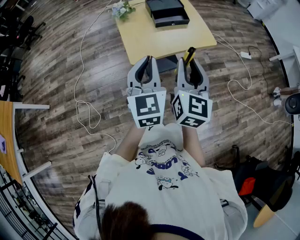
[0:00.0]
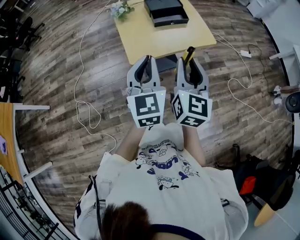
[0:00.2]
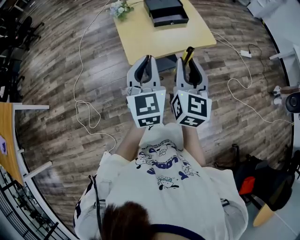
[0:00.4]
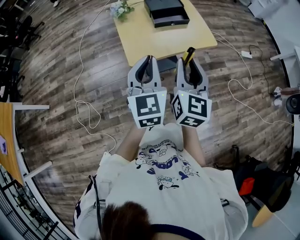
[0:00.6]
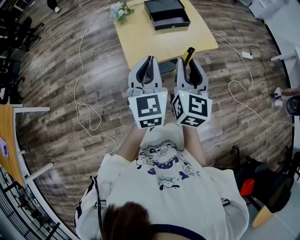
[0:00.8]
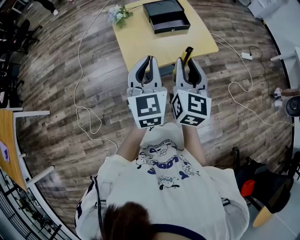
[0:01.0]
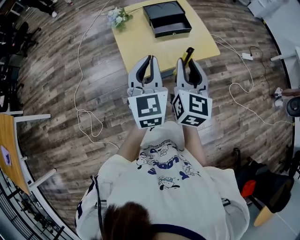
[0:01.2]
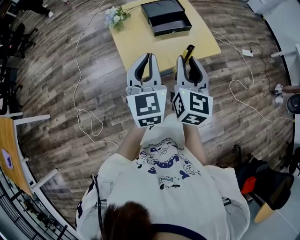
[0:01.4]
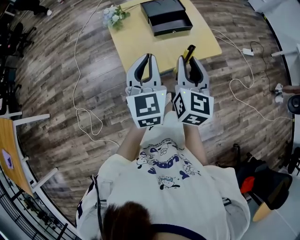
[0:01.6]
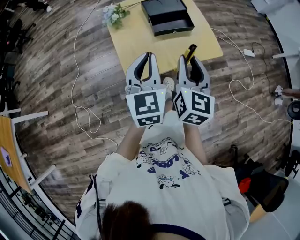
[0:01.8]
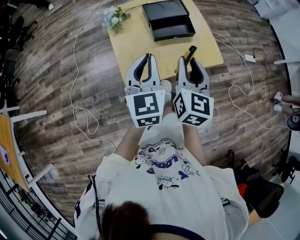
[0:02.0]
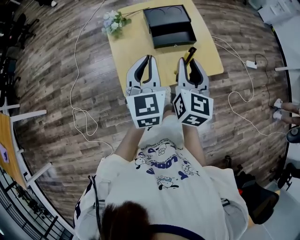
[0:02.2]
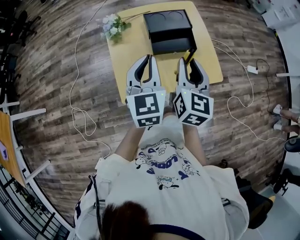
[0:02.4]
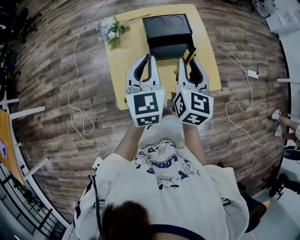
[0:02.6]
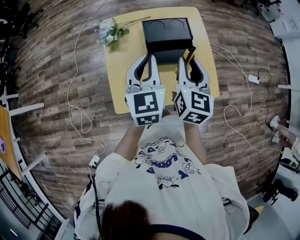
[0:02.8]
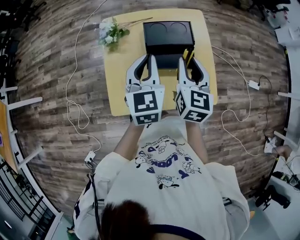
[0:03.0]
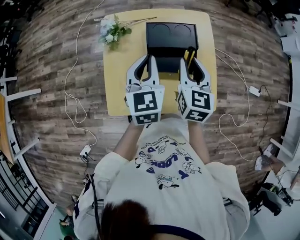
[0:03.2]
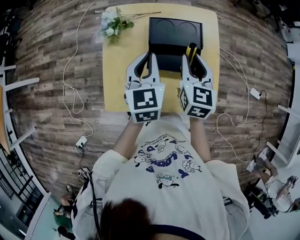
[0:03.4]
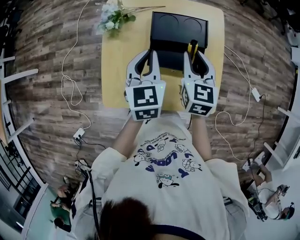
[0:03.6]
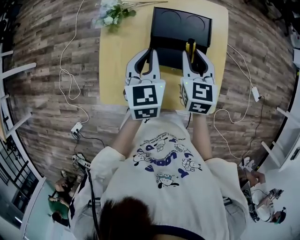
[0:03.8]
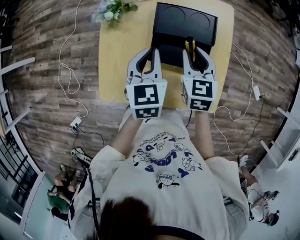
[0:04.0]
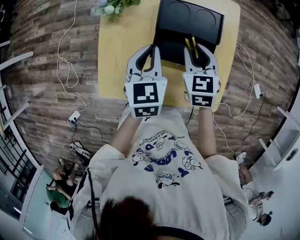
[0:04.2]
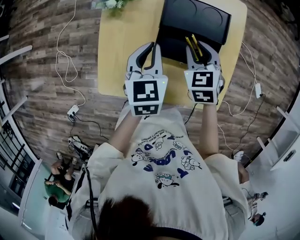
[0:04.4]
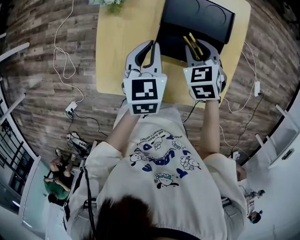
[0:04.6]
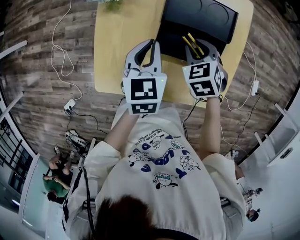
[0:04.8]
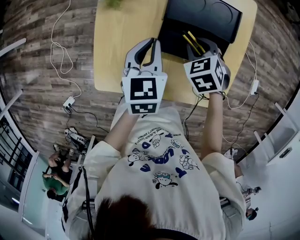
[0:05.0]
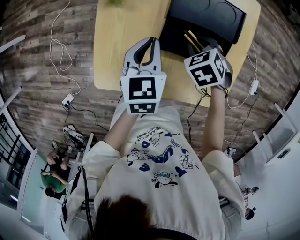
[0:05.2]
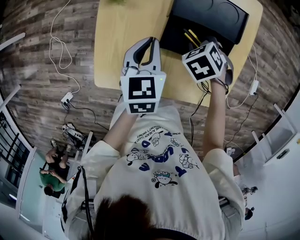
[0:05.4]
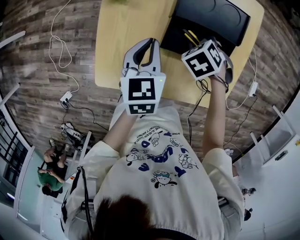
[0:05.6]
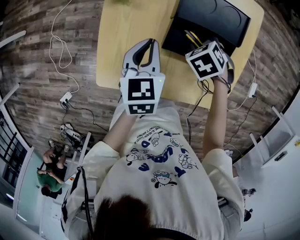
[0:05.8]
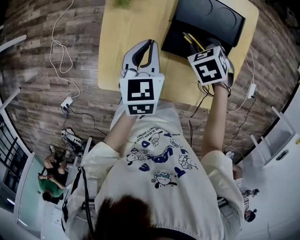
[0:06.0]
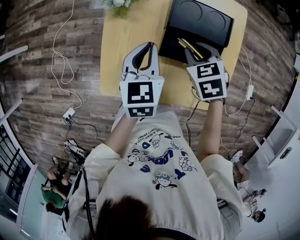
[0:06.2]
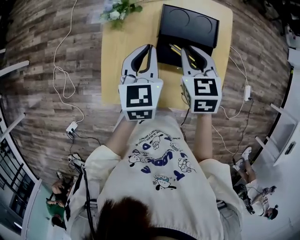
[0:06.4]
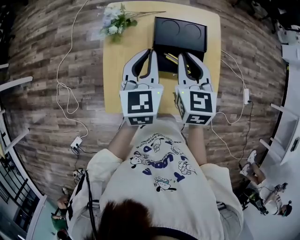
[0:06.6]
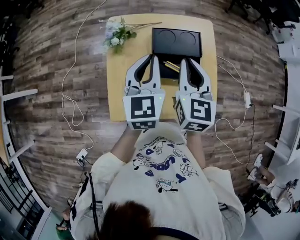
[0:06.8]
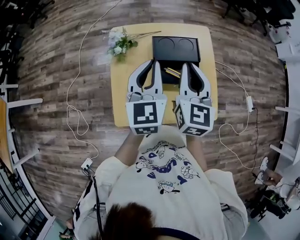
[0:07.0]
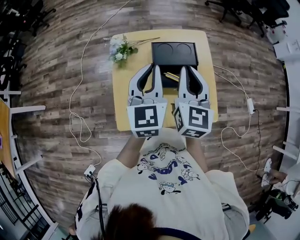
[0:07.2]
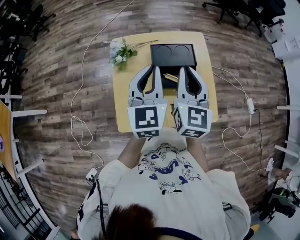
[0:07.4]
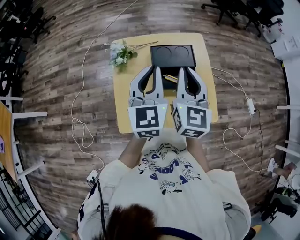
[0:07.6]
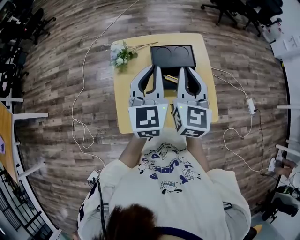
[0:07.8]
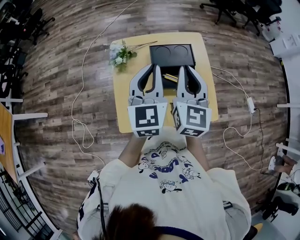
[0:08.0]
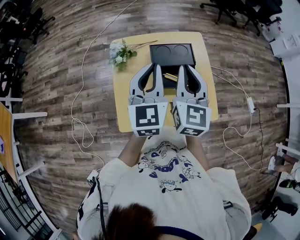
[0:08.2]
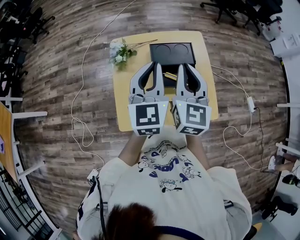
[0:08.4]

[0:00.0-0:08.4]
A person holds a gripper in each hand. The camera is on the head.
0:00.0 to 0:01.4: The two grippers go roughly 10 cm forward.
0:01.4 to 0:02.8: Both grippers move forward, about 25 cm.
0:02.8 to 0:04.2: Both grippers travel together downward and forward, roughly 15 cm. The left gripper swivels some 20 degrees. Meanwhile the right gripper turns by approximately 40 degrees.
0:04.2 to 0:05.6: The left gripper shifts some 5 cm downward. The right gripper moves downward, roughly 10 cm, and tips its fingers downward by roughly 40 degrees.
0:05.6 to 0:07.0: The two grippers go about 25 cm upward. The right gripper tilts its fingers about 70 degrees upward; the left gripper changes its angle by about 30 degrees.
0:07.0 to 0:08.4: The grippers make only small movements.

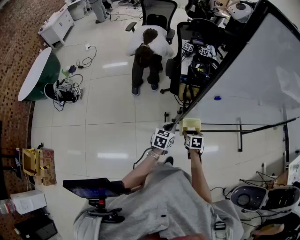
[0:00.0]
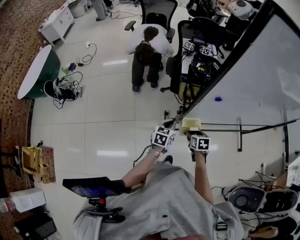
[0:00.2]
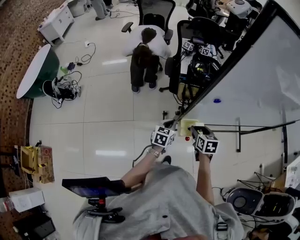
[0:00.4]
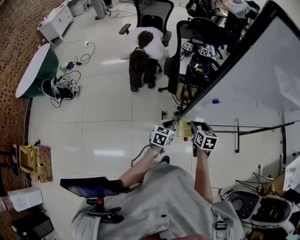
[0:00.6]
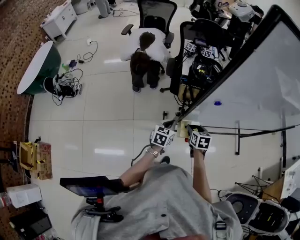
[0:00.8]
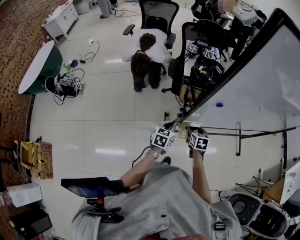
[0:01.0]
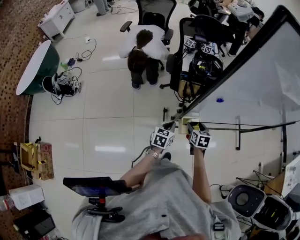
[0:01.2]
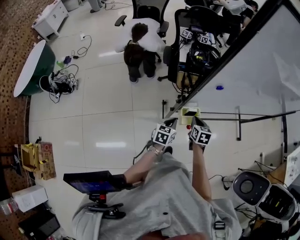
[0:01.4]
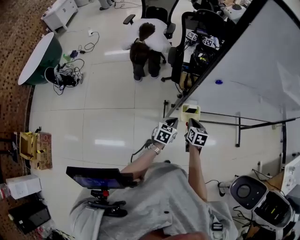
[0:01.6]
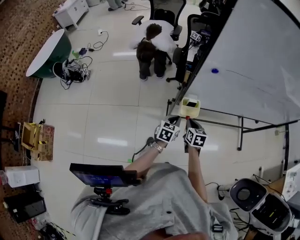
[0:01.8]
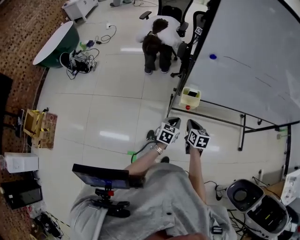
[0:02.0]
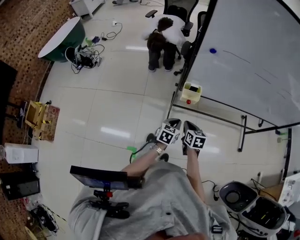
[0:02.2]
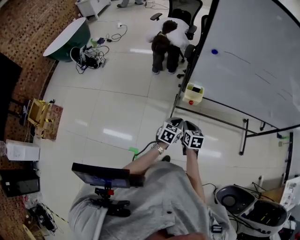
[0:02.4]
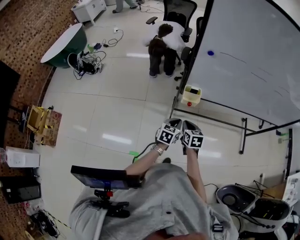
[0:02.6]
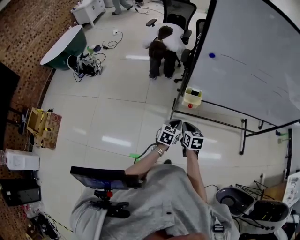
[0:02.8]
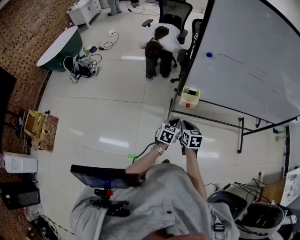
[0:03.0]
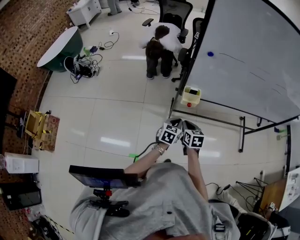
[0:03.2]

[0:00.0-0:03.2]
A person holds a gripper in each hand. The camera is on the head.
0:00.0 to 0:01.6: The left gripper goes some 5 cm backward; the right gripper travels upward by approximately 10 cm, and closes.
0:01.6 to 0:03.2: The grippers both shift backward by roughly 15 cm.

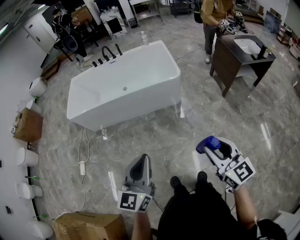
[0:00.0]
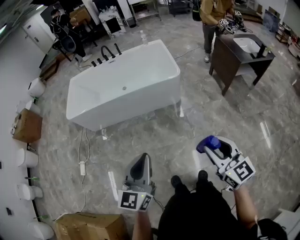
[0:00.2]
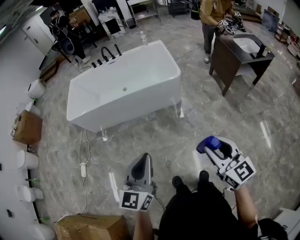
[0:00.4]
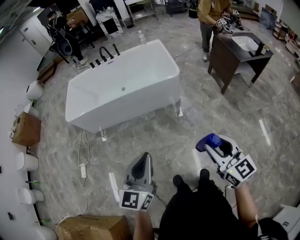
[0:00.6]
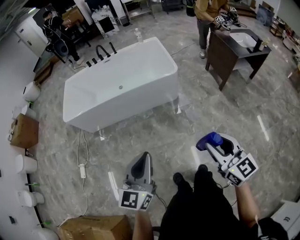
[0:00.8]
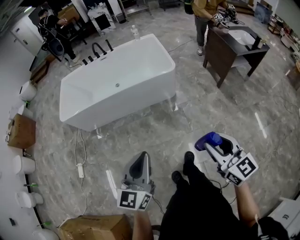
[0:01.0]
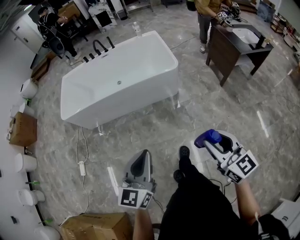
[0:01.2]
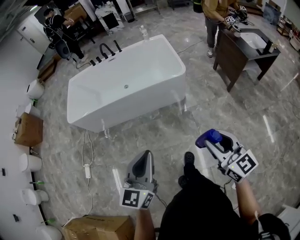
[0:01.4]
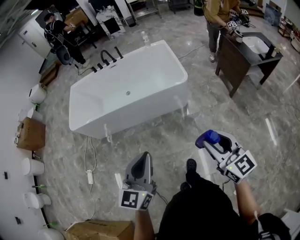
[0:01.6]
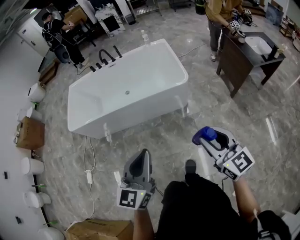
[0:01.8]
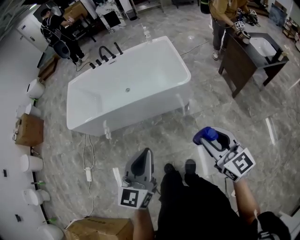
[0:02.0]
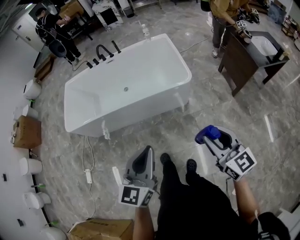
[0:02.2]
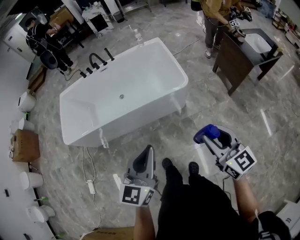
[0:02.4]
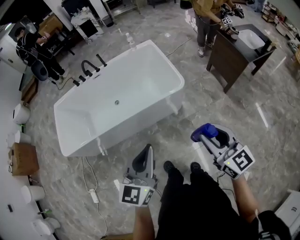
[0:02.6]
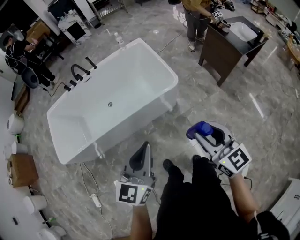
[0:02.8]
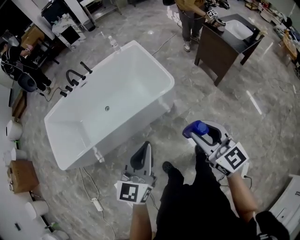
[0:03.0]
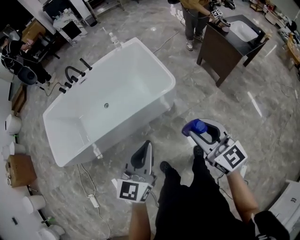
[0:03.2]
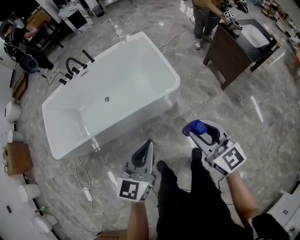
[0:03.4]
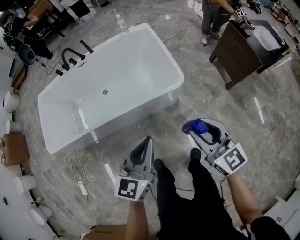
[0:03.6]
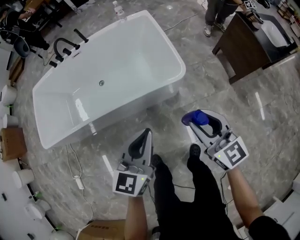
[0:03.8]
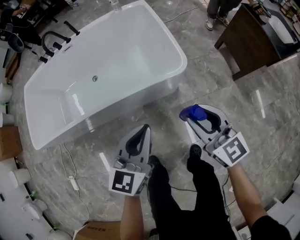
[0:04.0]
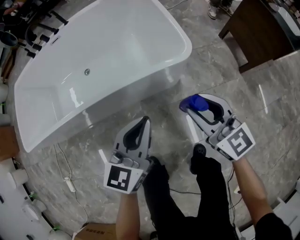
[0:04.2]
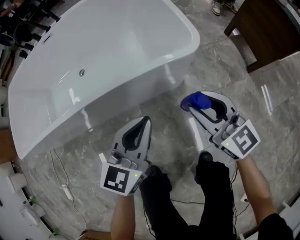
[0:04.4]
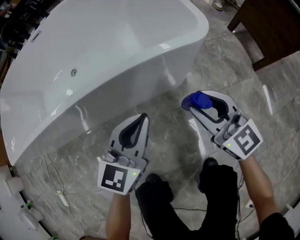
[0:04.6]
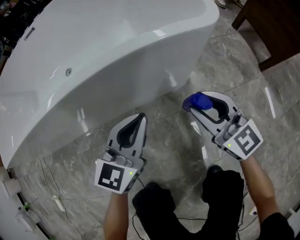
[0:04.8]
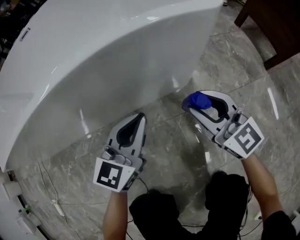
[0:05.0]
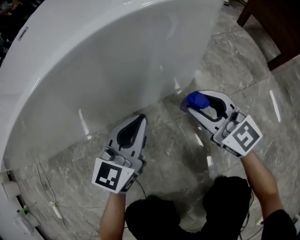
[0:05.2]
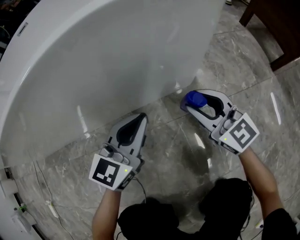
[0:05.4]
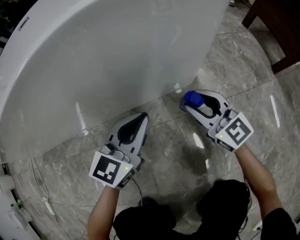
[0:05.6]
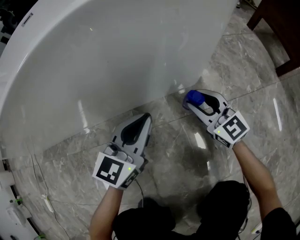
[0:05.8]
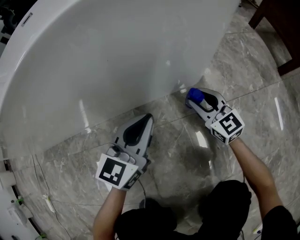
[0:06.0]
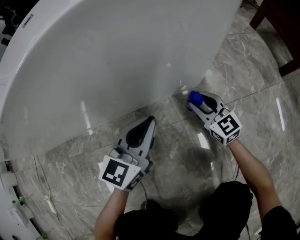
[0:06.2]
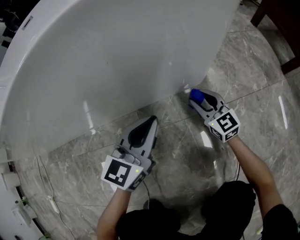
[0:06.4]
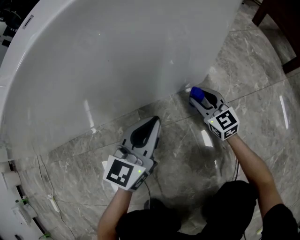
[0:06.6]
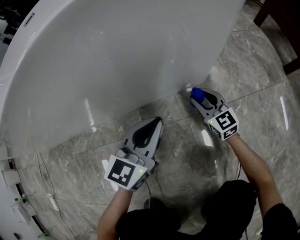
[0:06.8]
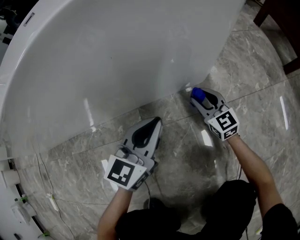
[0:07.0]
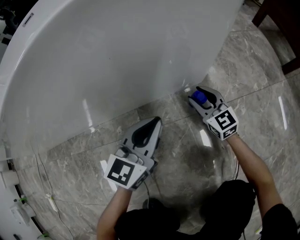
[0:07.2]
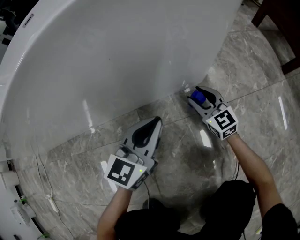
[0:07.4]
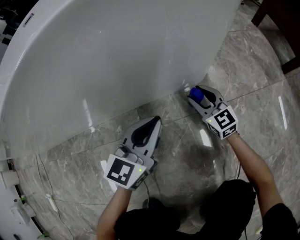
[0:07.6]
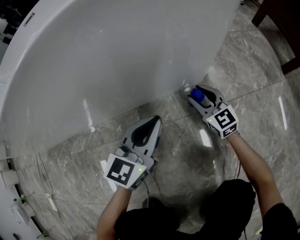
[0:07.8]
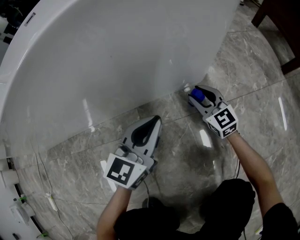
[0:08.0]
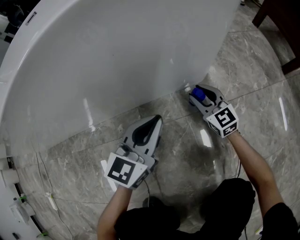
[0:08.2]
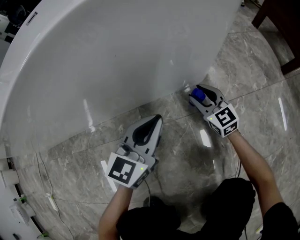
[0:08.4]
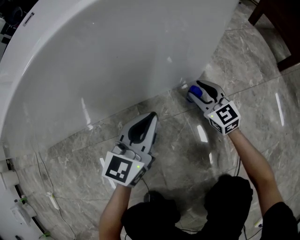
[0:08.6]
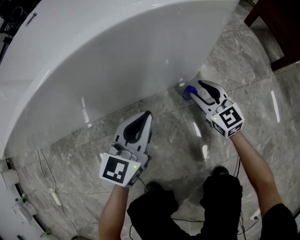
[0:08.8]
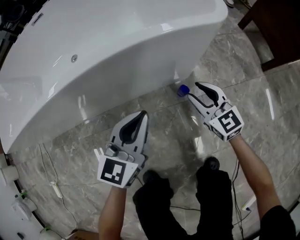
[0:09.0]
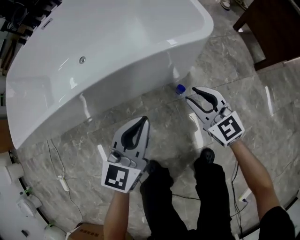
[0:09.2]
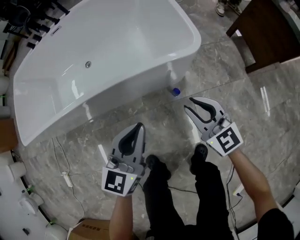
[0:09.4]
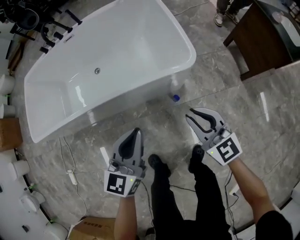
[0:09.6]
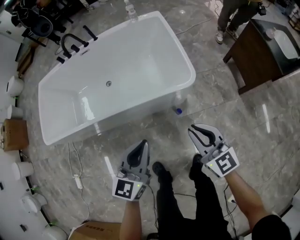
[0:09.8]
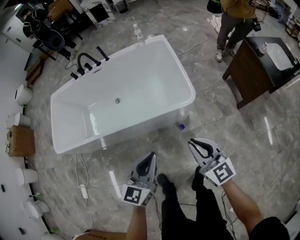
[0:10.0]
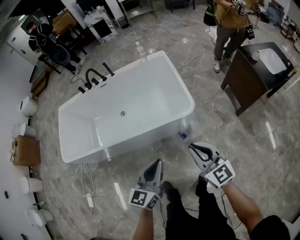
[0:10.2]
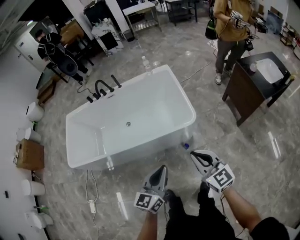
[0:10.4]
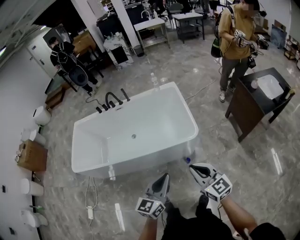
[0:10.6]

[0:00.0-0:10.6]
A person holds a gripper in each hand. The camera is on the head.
0:00.0 to 0:01.6: The grippers both shift forward by roughly 15 cm.
0:01.6 to 0:03.0: Both grippers move forward, about 25 cm.
0:03.0 to 0:04.6: Both grippers move downward and forward, roughly 60 cm.
0:04.6 to 0:06.0: Both grippers travel together downward, some 30 cm.
0:06.0 to 0:07.6: The grippers move only a little.
0:07.6 to 0:09.0: The grippers both shift upward by approximately 20 cm.
0:09.0 to 0:10.6: The two grippers go about 70 cm upward. The right gripper closes its fingers.

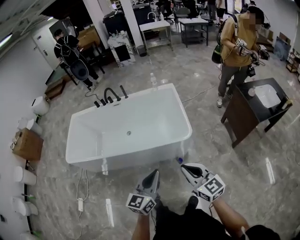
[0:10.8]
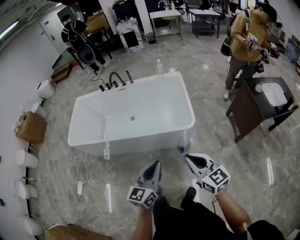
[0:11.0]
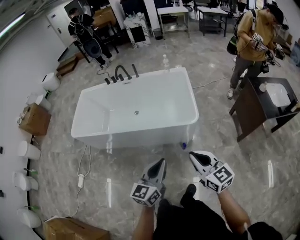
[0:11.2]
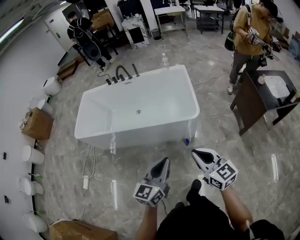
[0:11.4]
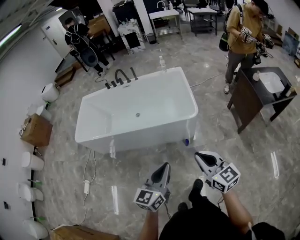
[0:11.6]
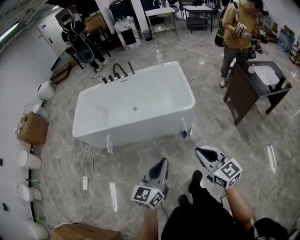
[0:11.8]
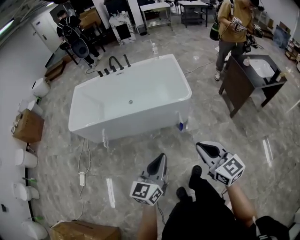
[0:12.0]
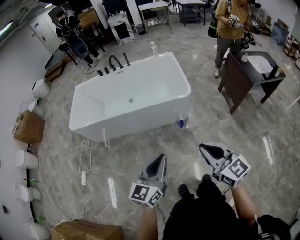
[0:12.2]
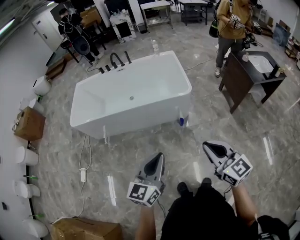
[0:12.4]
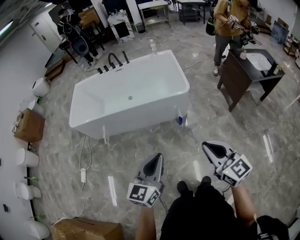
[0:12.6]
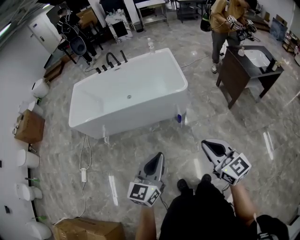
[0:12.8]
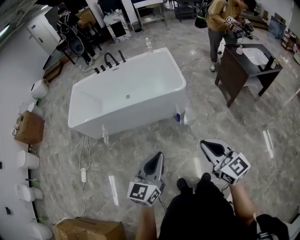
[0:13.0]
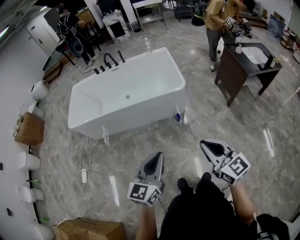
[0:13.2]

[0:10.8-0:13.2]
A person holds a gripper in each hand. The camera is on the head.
0:10.8 to 0:12.0: Both grippers travel together backward, some 20 cm.
0:12.0 to 0:13.2: The grippers both shift backward by about 10 cm.
